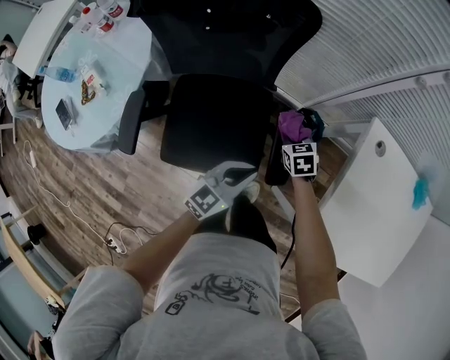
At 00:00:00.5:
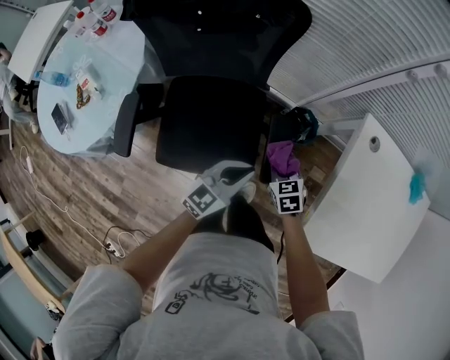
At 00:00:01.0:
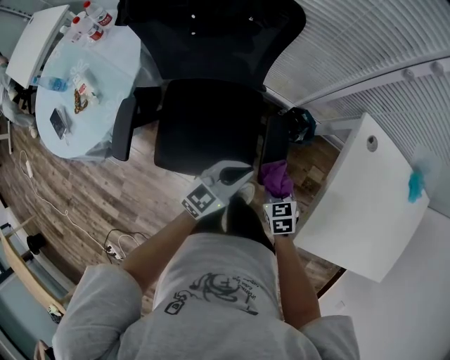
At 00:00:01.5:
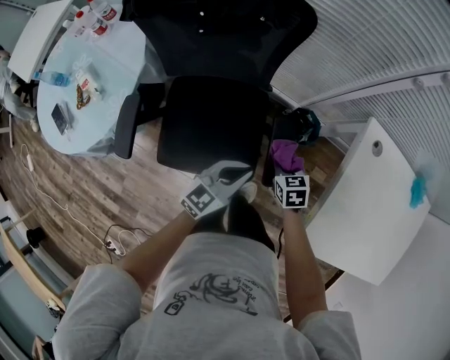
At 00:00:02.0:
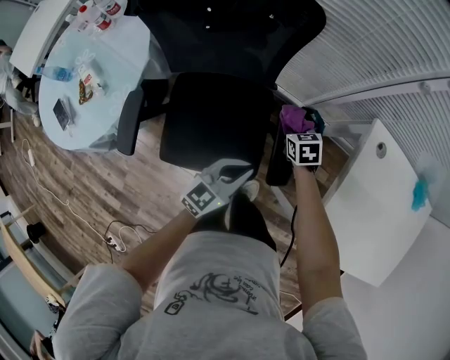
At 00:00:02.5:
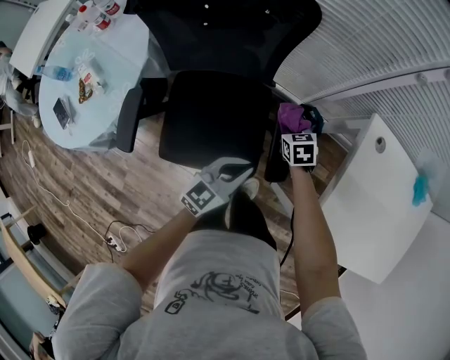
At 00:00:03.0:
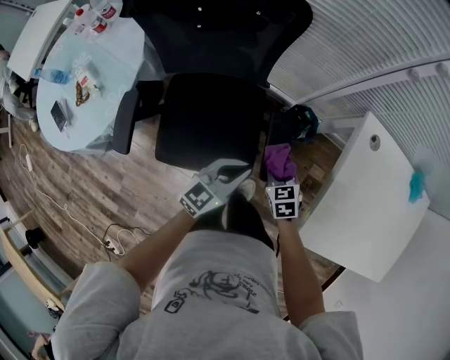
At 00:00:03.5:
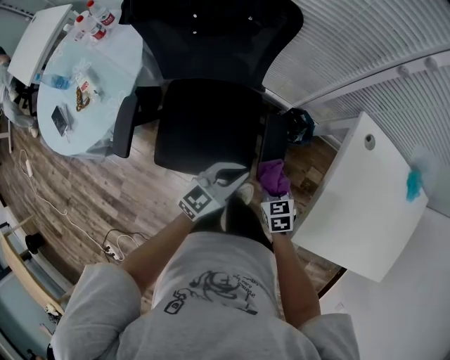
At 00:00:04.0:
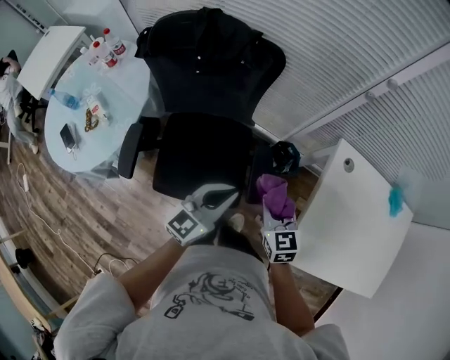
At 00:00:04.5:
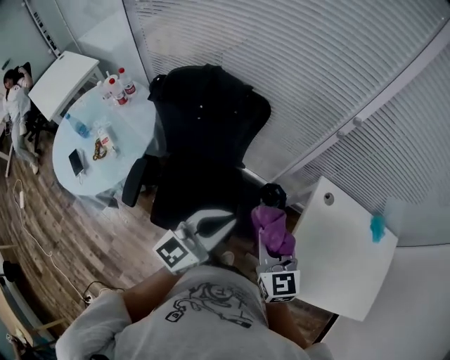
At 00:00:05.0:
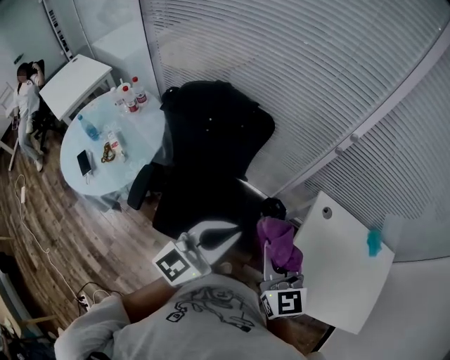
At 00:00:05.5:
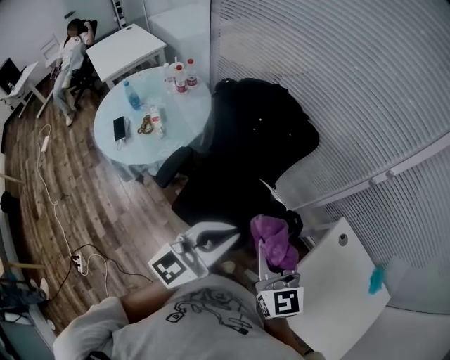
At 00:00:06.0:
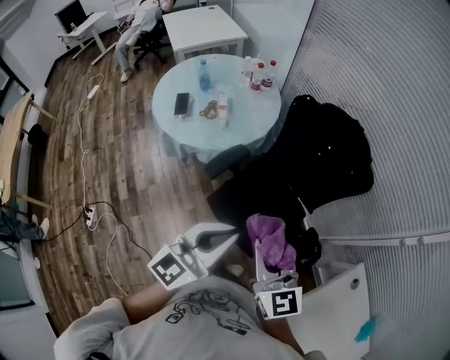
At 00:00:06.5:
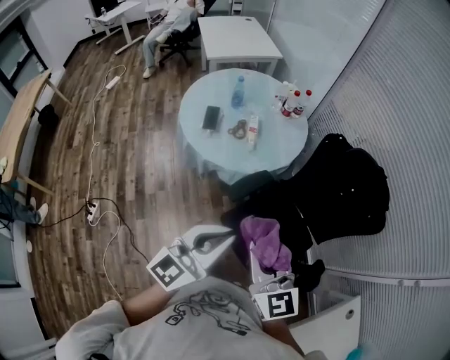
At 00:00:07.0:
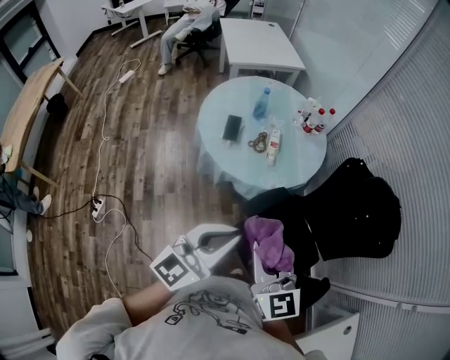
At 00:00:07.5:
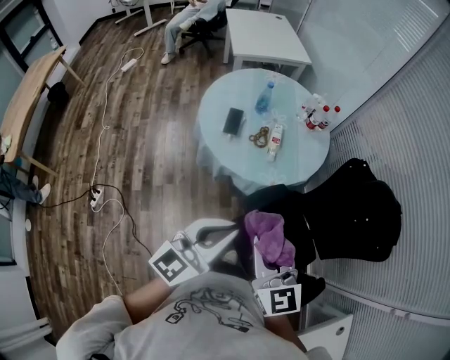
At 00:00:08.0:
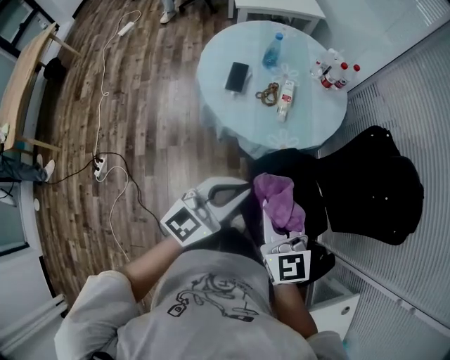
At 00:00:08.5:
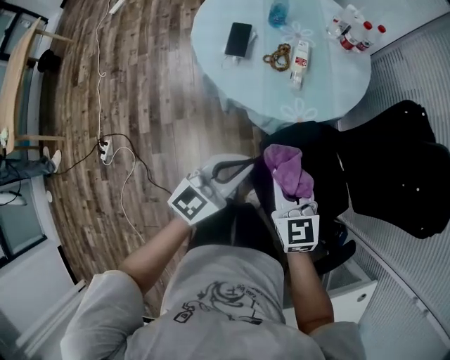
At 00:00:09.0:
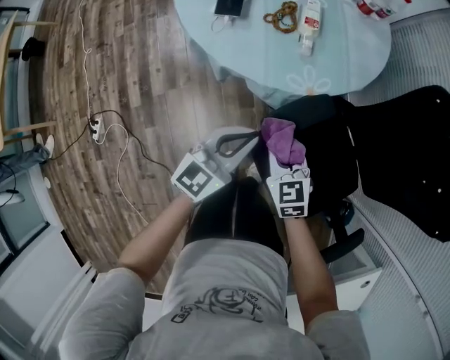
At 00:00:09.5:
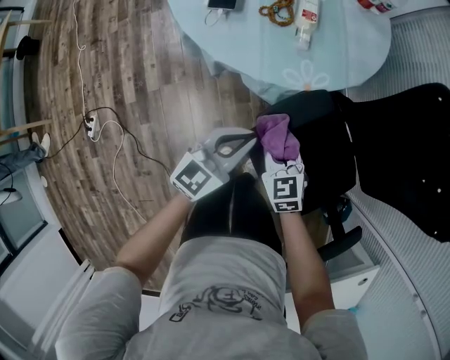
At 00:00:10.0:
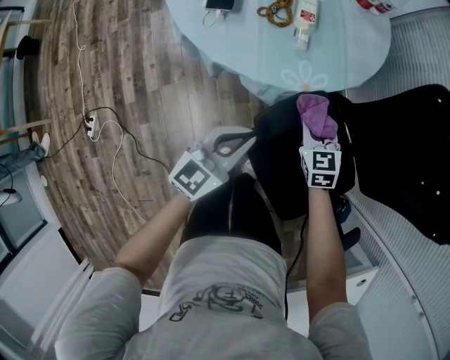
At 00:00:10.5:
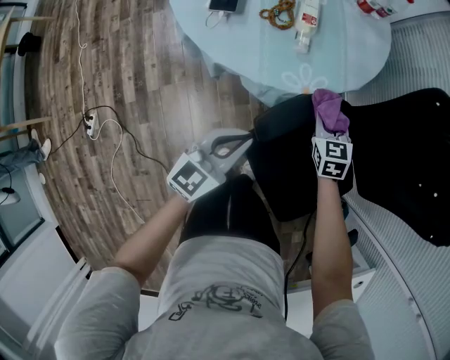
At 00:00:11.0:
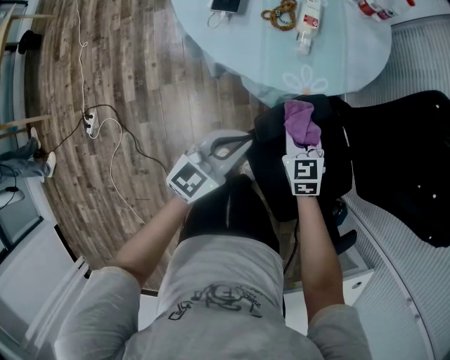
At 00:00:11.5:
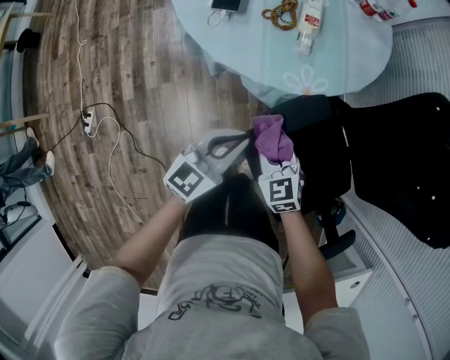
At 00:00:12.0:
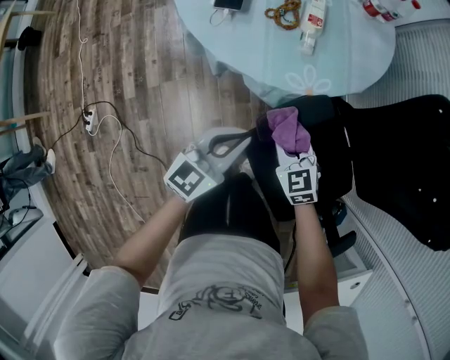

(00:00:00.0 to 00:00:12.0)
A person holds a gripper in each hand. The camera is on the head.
00:00:00.0 - 00:00:02.0: The right gripper reaches about 15 cm backward, then returns.
00:00:02.0 - 00:00:04.0: The right gripper is displaced upward and backward by some 25 cm, and rotates about 30 degrees. The left gripper travels upward by about 15 cm.
00:00:04.0 - 00:00:06.0: The right gripper shifts by some 35 cm, and swivels roughly 50 degrees; the left gripper shifts by approximately 35 cm, and turns by some 40 degrees.
00:00:06.0 - 00:00:08.0: The left gripper is displaced forward, to the left and downward by some 30 cm. Meanwhile the right gripper goes approximately 30 cm to the left, forward and downward.
00:00:08.0 - 00:00:10.0: The right gripper shifts approximately 40 cm downward and forward, and changes its angle by roughly 20 degrees; the left gripper moves downward, approximately 25 cm.
00:00:10.0 - 00:00:12.0: The right gripper is displaced to the left and backward by about 10 cm.

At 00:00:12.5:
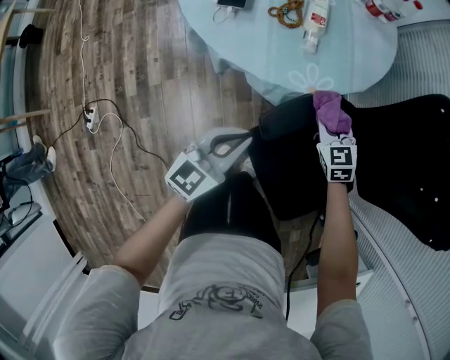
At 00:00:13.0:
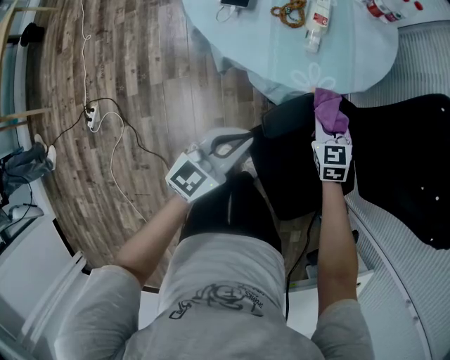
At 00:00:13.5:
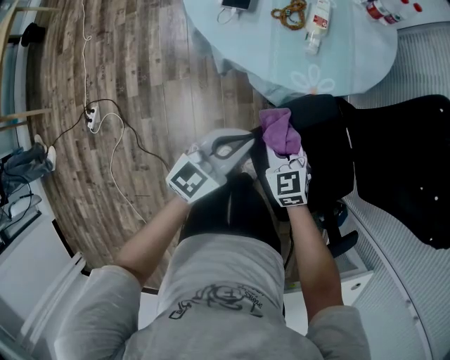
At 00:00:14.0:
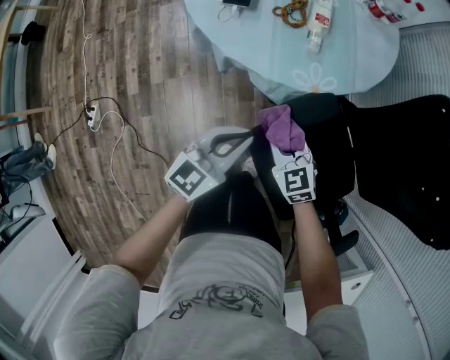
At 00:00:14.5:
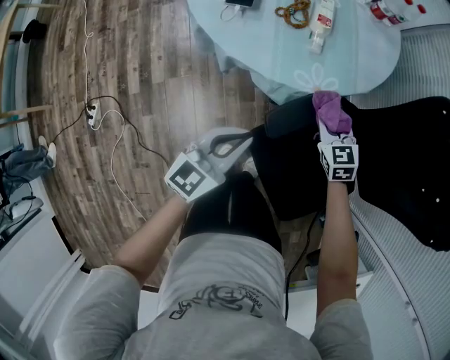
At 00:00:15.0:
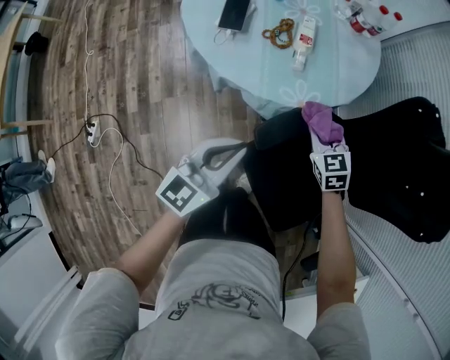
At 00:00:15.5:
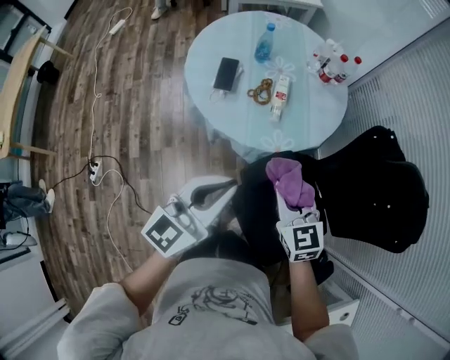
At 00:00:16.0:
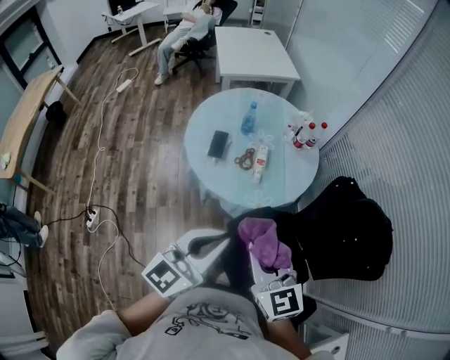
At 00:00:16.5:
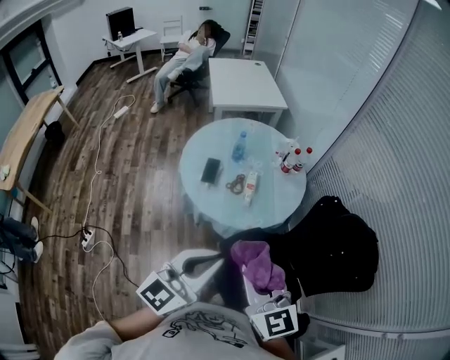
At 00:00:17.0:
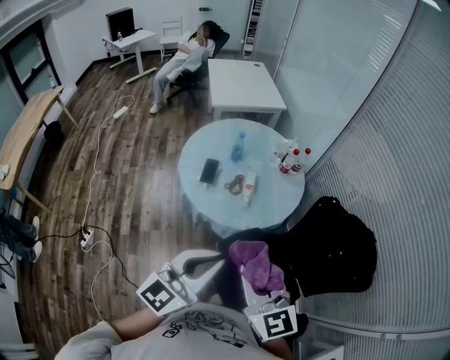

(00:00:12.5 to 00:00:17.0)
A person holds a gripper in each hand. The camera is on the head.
00:00:12.5 - 00:00:14.5: The right gripper goes to the left and returns, some 15 cm each way.
00:00:14.5 - 00:00:17.0: The right gripper travels upward and backward by approximately 60 cm, and angles its fingers upward, by some 30 degrees, while the left gripper heads upward, covering about 40 cm, and swivels roughly 20 degrees.

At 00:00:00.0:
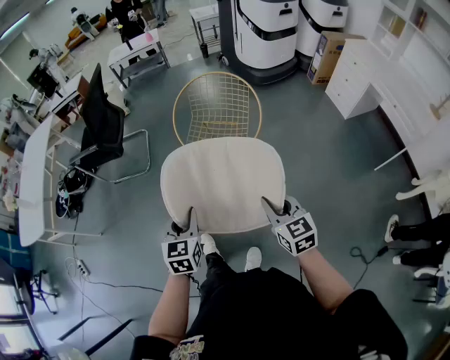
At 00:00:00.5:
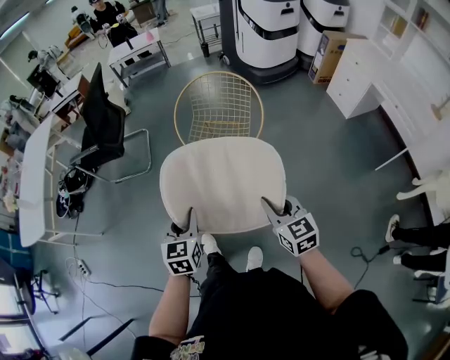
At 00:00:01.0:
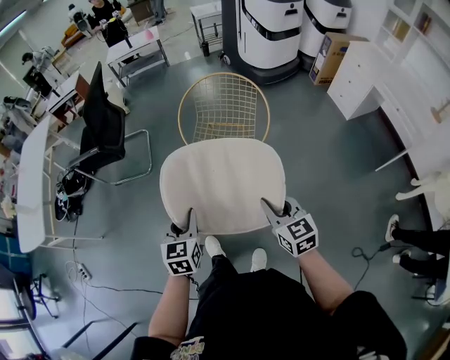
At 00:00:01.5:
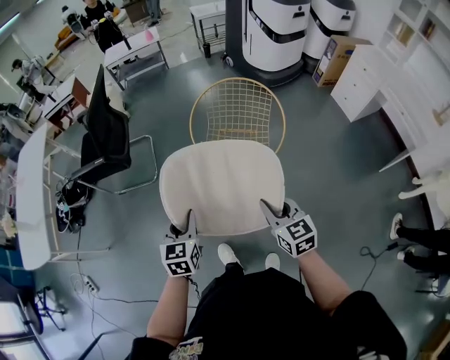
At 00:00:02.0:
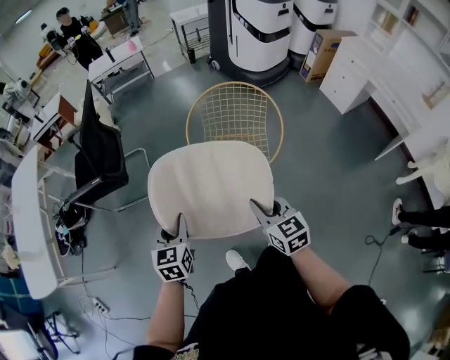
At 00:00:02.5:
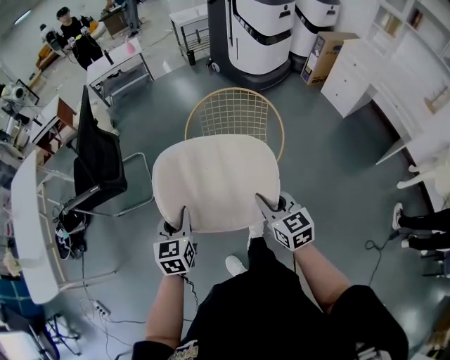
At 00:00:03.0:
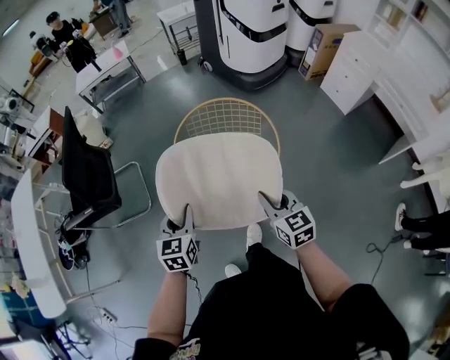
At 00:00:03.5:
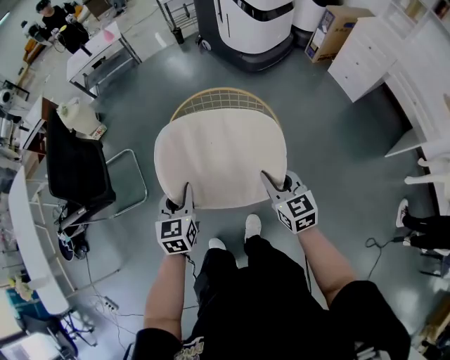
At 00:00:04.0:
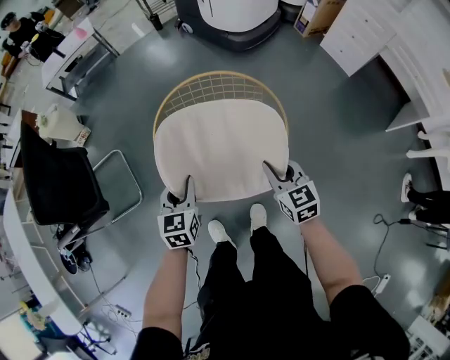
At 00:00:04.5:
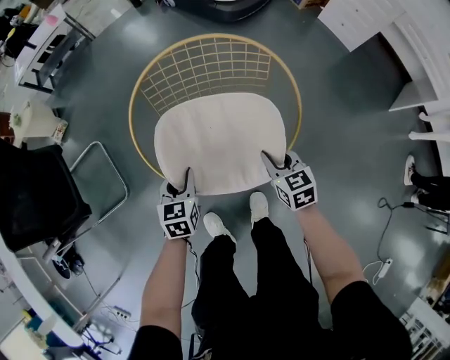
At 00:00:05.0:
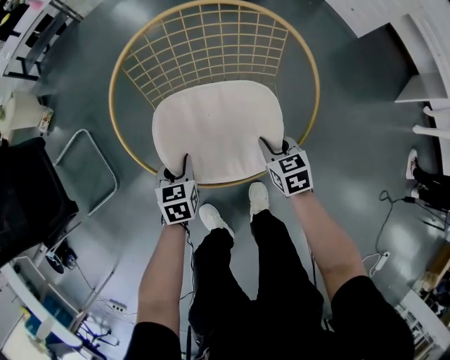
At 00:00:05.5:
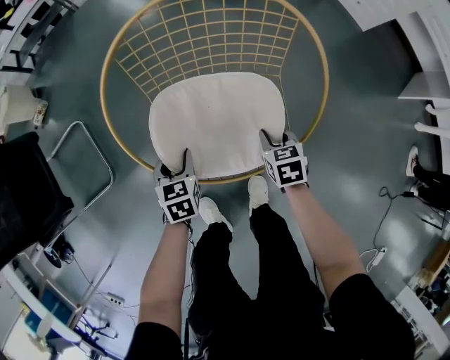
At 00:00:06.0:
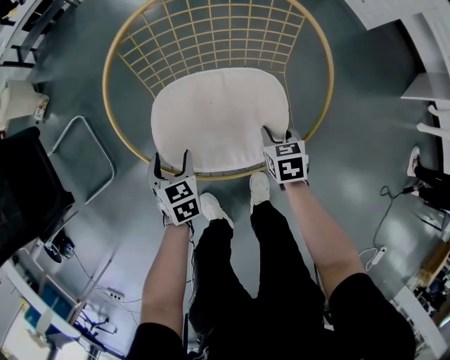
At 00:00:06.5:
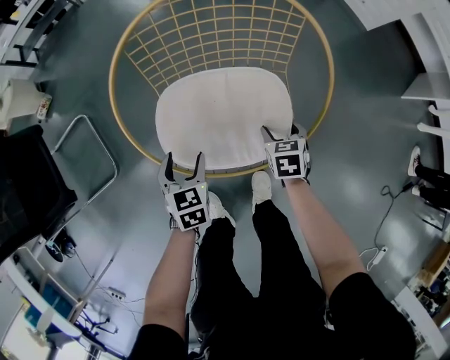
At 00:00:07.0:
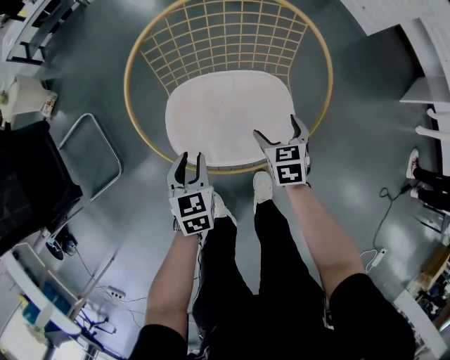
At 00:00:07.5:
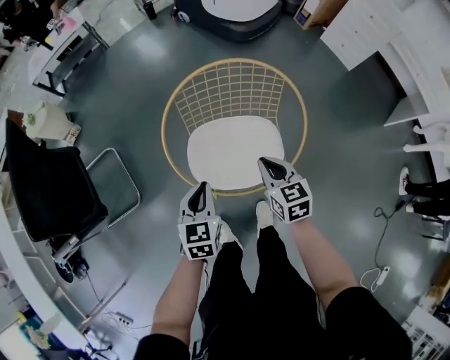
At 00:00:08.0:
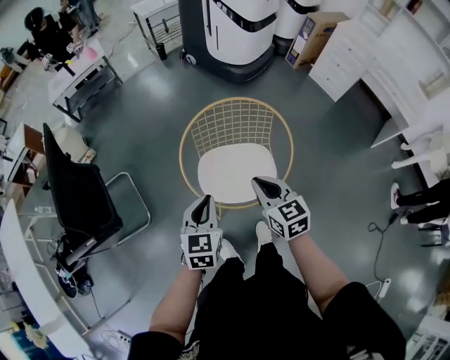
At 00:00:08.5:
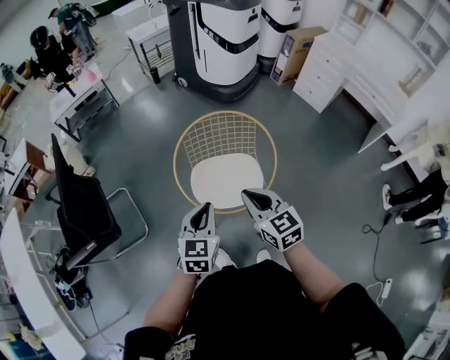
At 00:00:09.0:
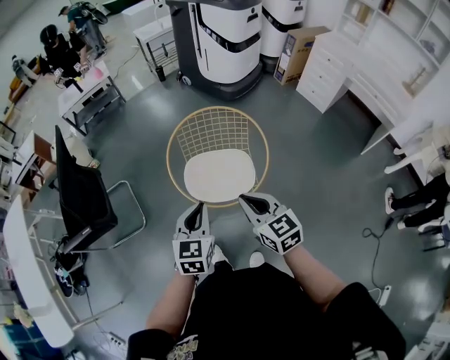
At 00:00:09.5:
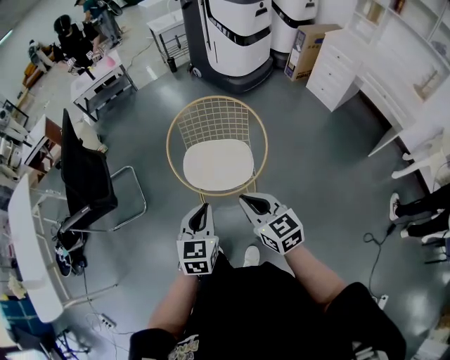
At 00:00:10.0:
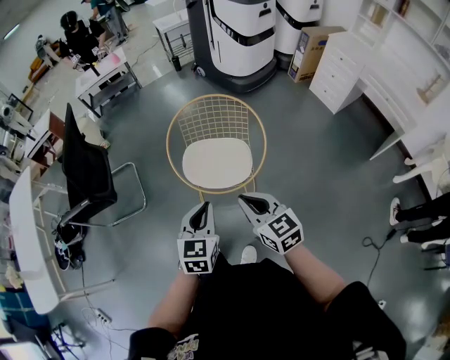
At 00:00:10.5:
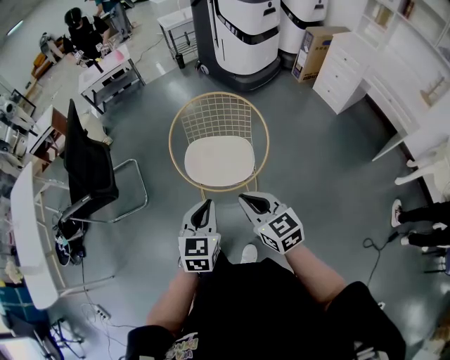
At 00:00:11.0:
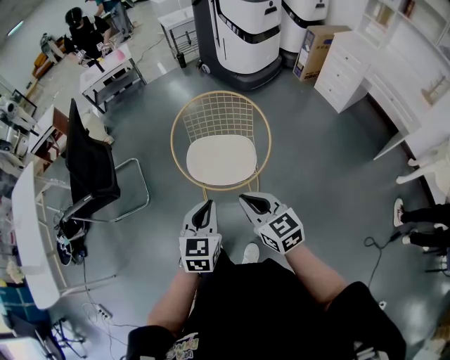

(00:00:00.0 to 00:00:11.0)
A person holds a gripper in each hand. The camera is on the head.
00:00:00.0 - 00:00:02.0: The left gripper heads forward and to the left, covering roughly 30 cm; the right gripper goes roughly 30 cm to the left and forward.
00:00:02.0 - 00:00:03.5: The two grippers go some 35 cm forward and to the right.
00:00:03.5 - 00:00:05.5: Both grippers move downward, some 40 cm. The left gripper swivels about 20 degrees; the right gripper angles its fingers downward, by about 30 degrees.
00:00:05.5 - 00:00:07.5: Both grippers move upward, roughly 25 cm. The right gripper turns by some 20 degrees, and opens, then closes again. Meanwhile the left gripper closes its fingers.
00:00:07.5 - 00:00:09.0: The grippers both shift upward and backward by approximately 30 cm.
00:00:09.0 - 00:00:11.0: The right gripper goes some 10 cm backward, while the left gripper goes some 10 cm backward and to the right.
